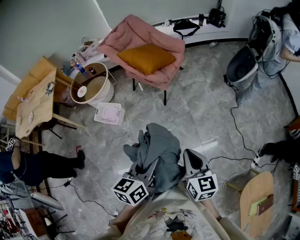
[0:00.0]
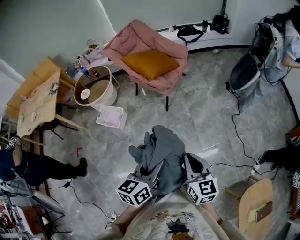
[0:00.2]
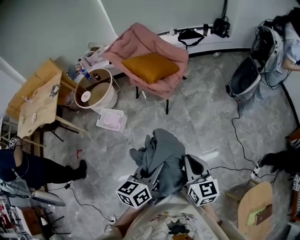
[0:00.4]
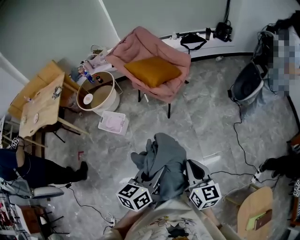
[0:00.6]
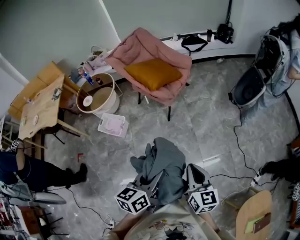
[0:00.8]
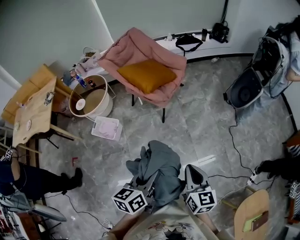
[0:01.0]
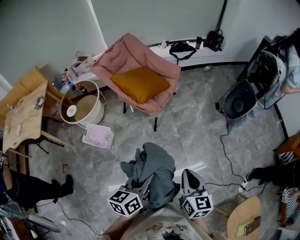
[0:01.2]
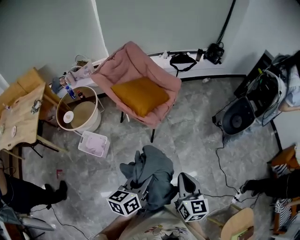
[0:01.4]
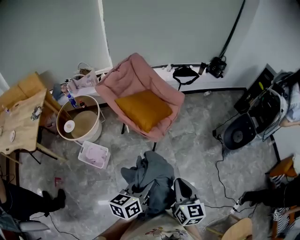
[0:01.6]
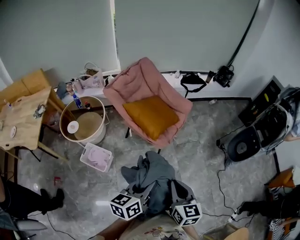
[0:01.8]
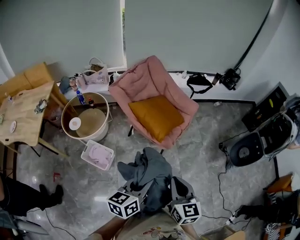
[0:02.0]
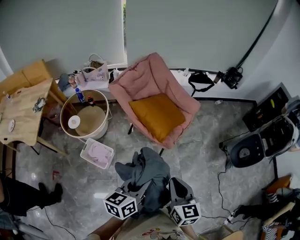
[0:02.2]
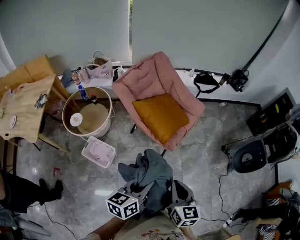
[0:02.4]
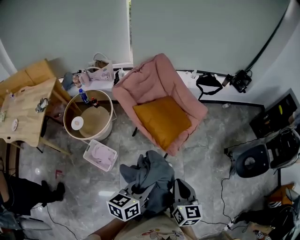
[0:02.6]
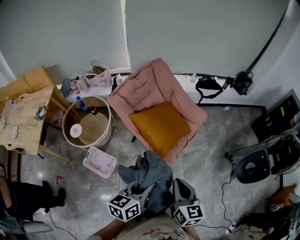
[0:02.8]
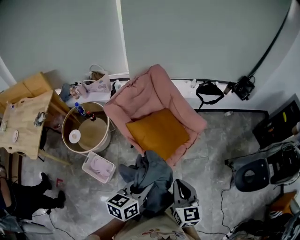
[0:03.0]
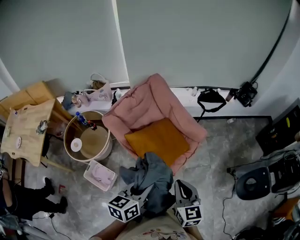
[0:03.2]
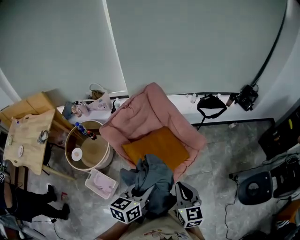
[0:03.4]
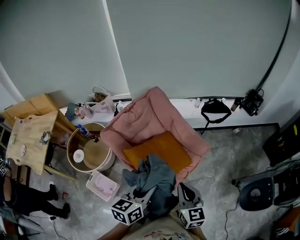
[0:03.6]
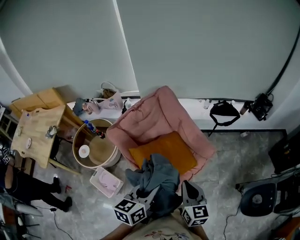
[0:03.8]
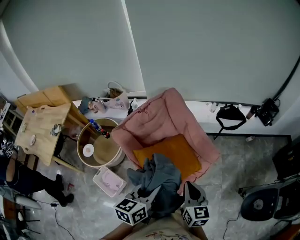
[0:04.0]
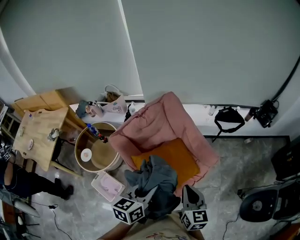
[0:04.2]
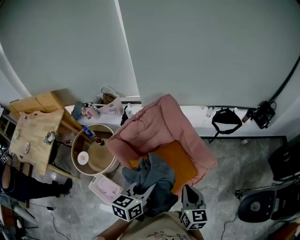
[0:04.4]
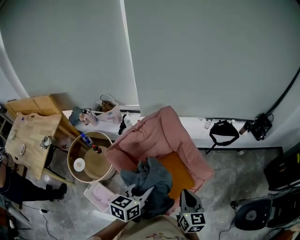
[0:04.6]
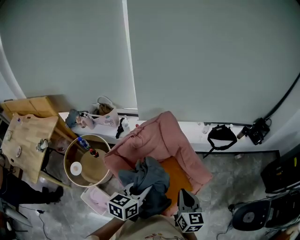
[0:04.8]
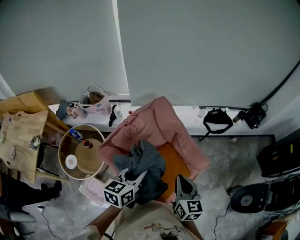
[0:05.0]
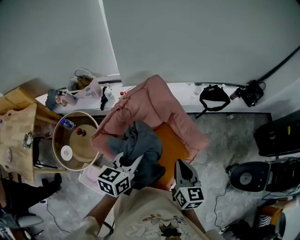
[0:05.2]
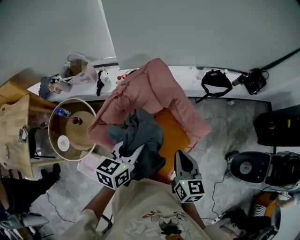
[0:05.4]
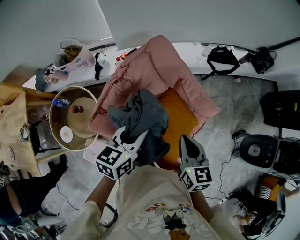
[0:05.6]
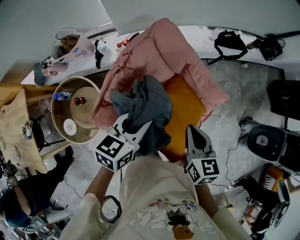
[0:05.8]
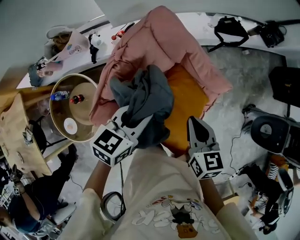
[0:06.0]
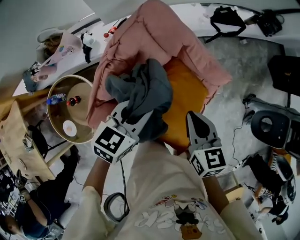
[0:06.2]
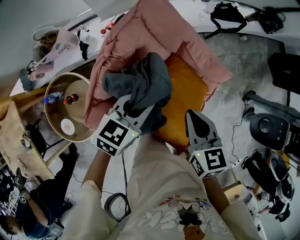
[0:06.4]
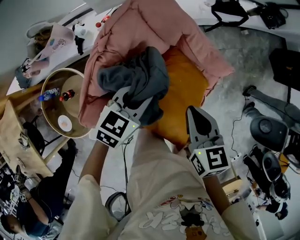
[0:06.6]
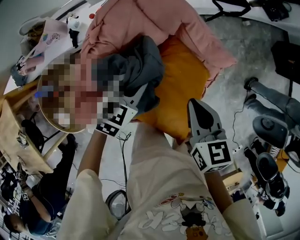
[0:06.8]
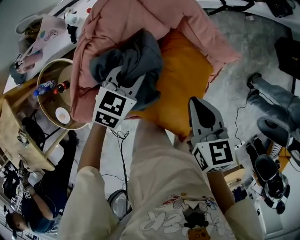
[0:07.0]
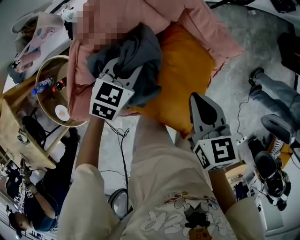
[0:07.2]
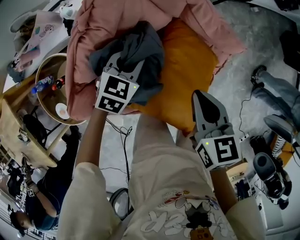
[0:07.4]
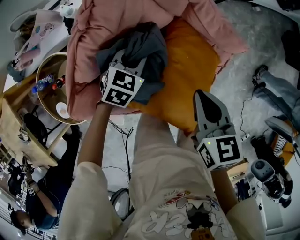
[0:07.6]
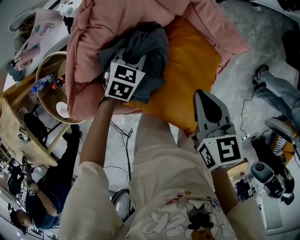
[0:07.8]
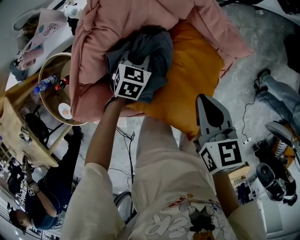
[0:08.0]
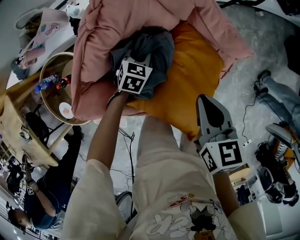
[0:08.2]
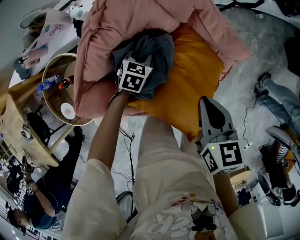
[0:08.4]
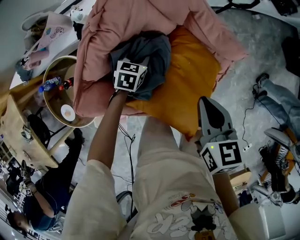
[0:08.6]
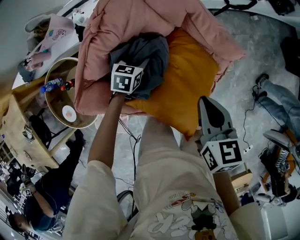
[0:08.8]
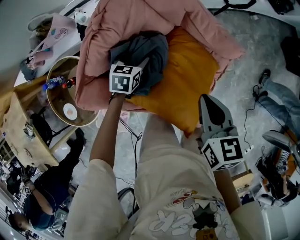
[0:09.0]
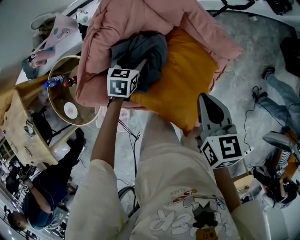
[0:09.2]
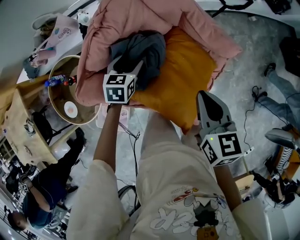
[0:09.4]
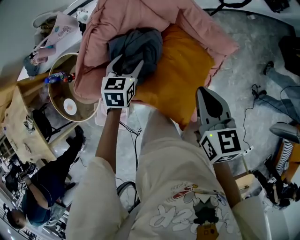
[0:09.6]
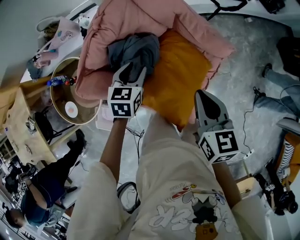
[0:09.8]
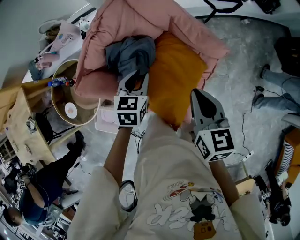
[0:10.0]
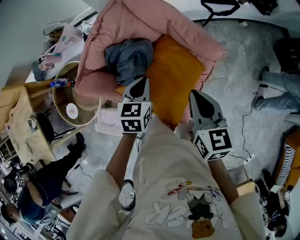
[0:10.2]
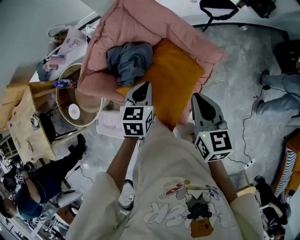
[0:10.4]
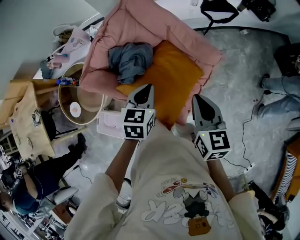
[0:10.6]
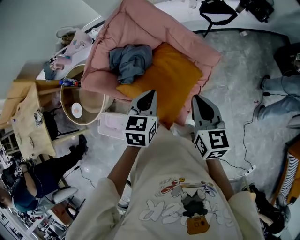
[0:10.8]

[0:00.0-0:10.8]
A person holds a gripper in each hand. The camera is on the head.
0:00.0 to 0:01.6: The grippers both shift forward by about 25 cm.
0:01.6 to 0:03.0: The two grippers go roughly 30 cm forward.
0:03.0 to 0:04.6: The two grippers go roughly 30 cm forward.
0:04.6 to 0:06.2: The left gripper shifts approximately 25 cm forward, downward and to the left, and rotates about 40 degrees. The right gripper heads to the left, forward and downward, covering about 25 cm.
0:06.2 to 0:07.8: The left gripper travels downward by about 25 cm, and changes its angle by roughly 20 degrees. Meanwhile the right gripper shifts roughly 10 cm downward.
0:07.8 to 0:09.2: The left gripper opens up; the right gripper moves upward, some 5 cm.
0:09.2 to 0:10.8: The right gripper travels to the right, backward and upward by roughly 20 cm. Meanwhile the left gripper shifts roughly 35 cm upward, backward and to the right, and closes up.

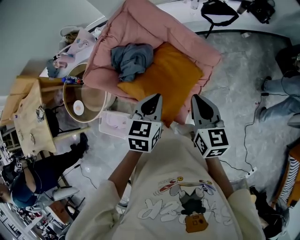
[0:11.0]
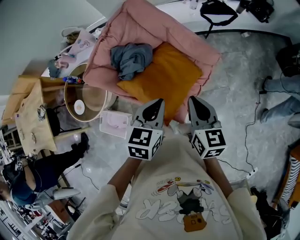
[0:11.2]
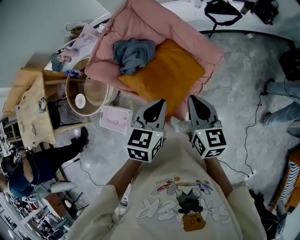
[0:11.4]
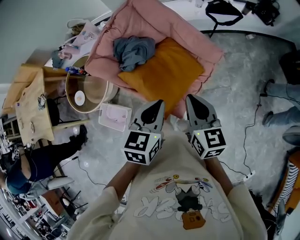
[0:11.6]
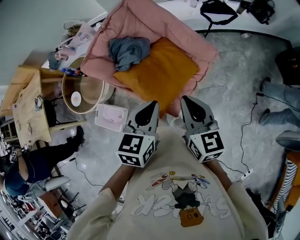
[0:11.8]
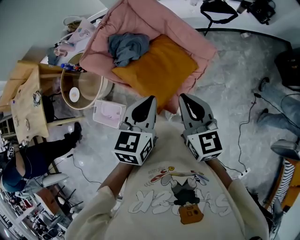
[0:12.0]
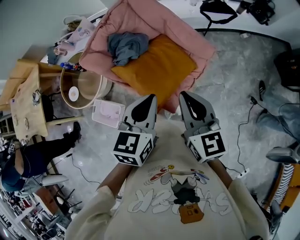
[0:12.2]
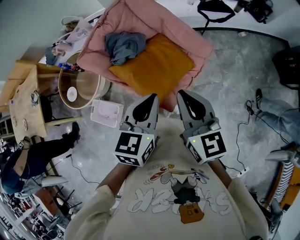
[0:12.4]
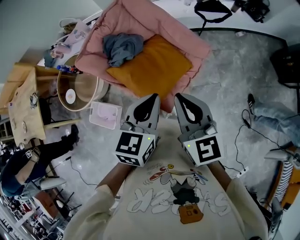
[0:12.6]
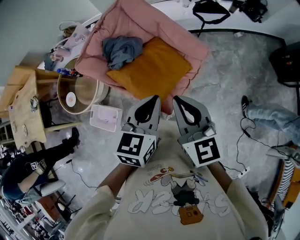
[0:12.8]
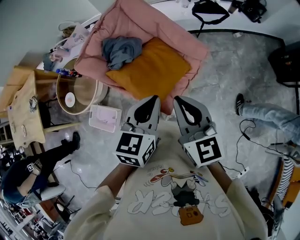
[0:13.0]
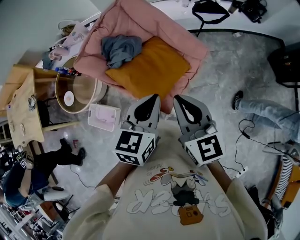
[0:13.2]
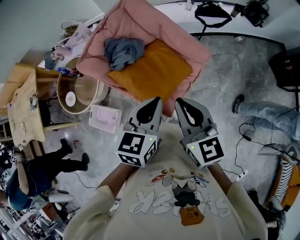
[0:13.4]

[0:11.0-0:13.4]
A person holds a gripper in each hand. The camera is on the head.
0:11.0 to 0:12.2: Both grippers move backward and upward, roughly 10 cm.
0:12.2 to 0:13.4: The grippers stay close to where they were, moving slightly.

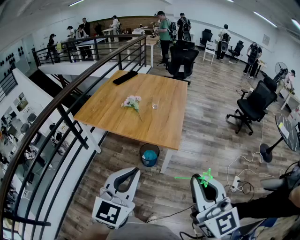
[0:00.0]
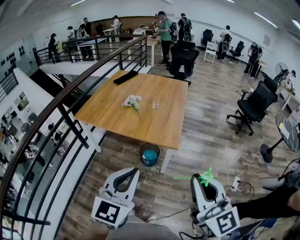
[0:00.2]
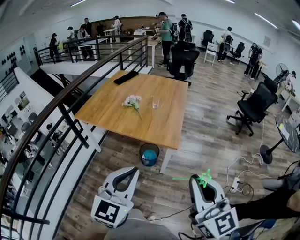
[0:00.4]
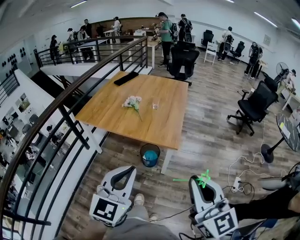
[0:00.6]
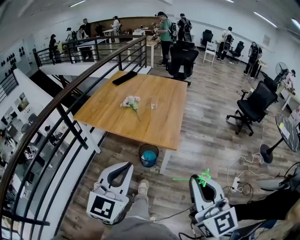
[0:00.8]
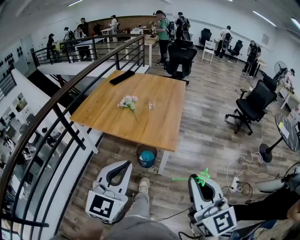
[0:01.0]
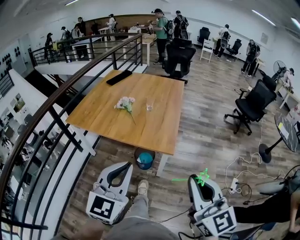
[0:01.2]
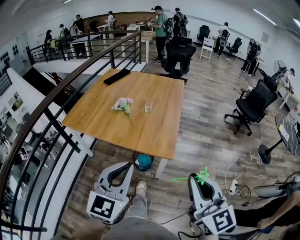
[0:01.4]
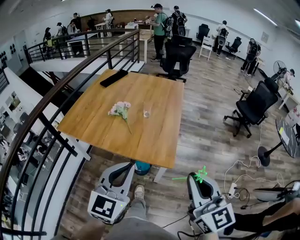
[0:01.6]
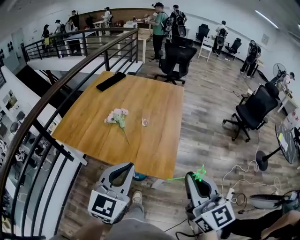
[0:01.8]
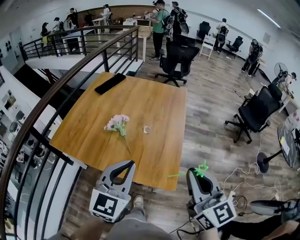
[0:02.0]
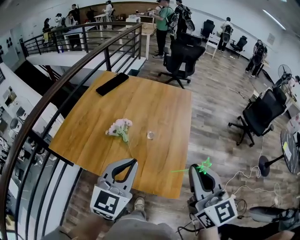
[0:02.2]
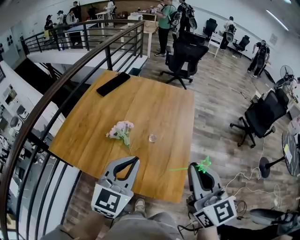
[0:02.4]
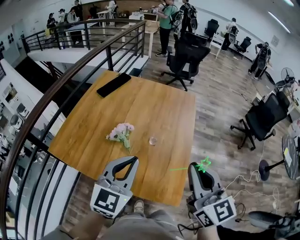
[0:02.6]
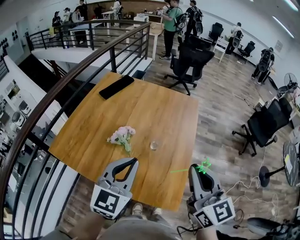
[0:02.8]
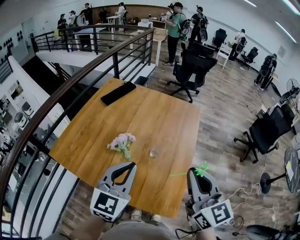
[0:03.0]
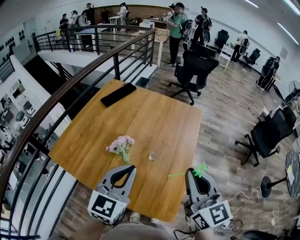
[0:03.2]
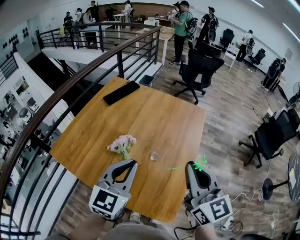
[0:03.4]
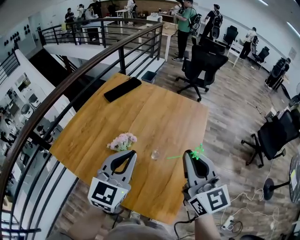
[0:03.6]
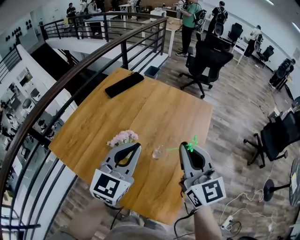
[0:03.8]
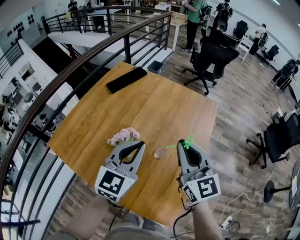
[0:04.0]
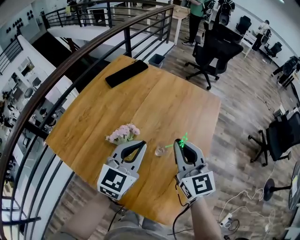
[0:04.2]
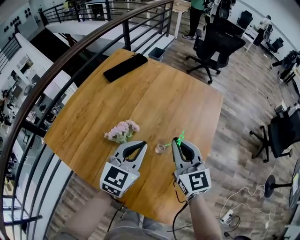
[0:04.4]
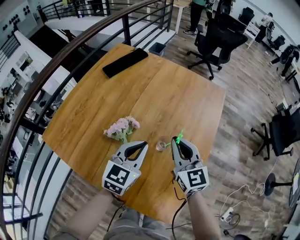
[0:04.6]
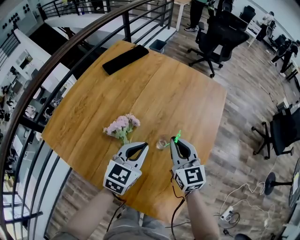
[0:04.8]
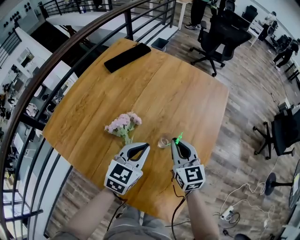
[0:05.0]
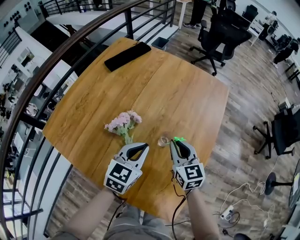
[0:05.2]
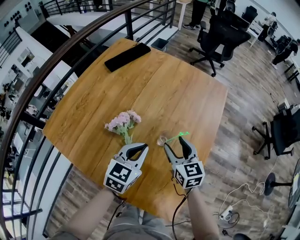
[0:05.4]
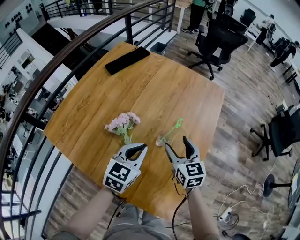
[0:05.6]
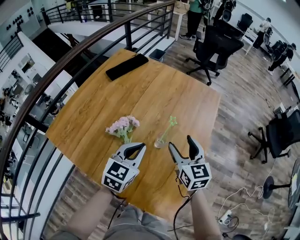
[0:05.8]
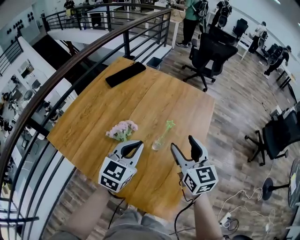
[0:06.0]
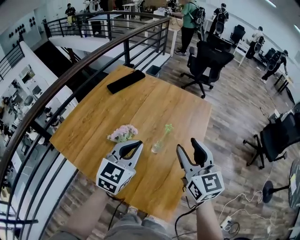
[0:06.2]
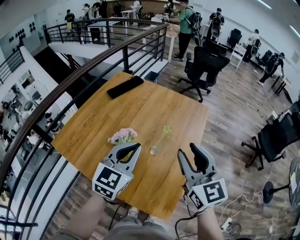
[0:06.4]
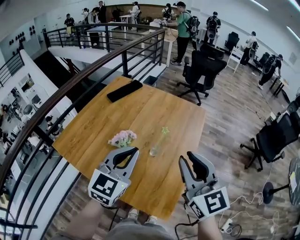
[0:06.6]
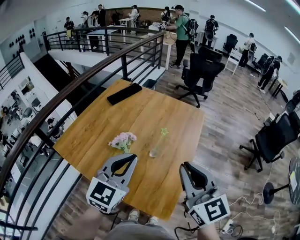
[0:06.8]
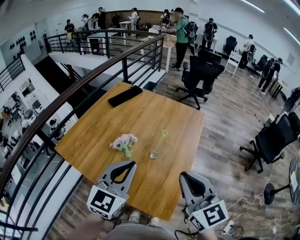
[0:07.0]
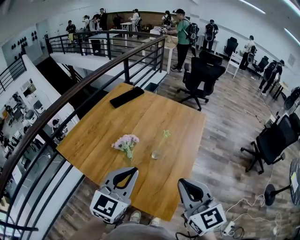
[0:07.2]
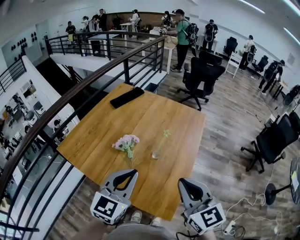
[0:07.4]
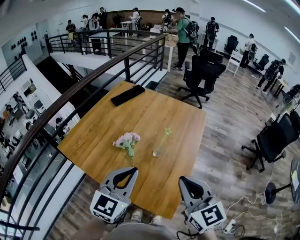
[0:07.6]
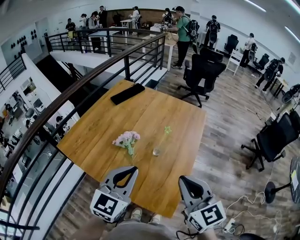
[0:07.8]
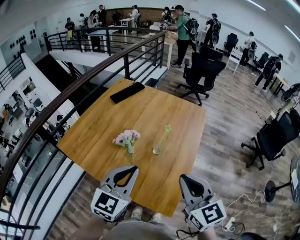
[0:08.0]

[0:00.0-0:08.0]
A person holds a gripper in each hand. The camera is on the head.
0:00.0 to 0:01.6: The grippers both shift forward by approximately 20 cm.
0:01.6 to 0:03.2: The two grippers go roughly 35 cm forward.
0:03.2 to 0:04.8: Both grippers travel together downward and forward, about 25 cm.
0:04.8 to 0:06.4: The left gripper travels upward by roughly 15 cm. Meanwhile the right gripper shifts about 25 cm upward and backward, and opens.
0:06.4 to 0:08.0: Both grippers travel together backward, some 10 cm. The right gripper closes.

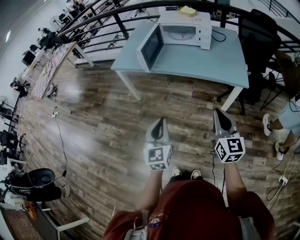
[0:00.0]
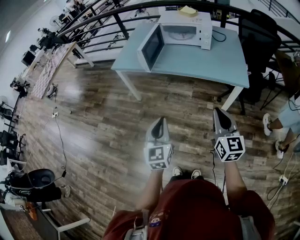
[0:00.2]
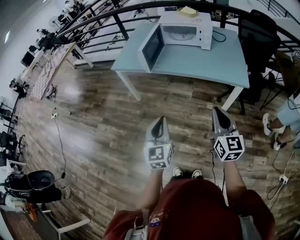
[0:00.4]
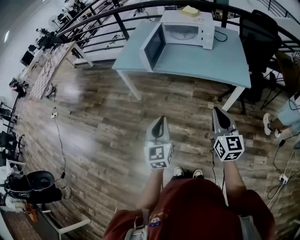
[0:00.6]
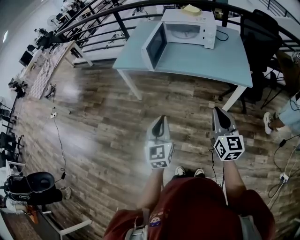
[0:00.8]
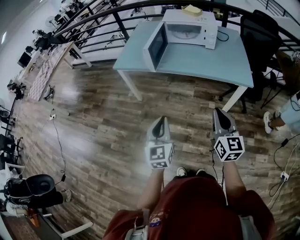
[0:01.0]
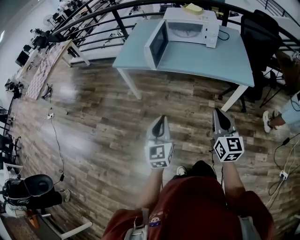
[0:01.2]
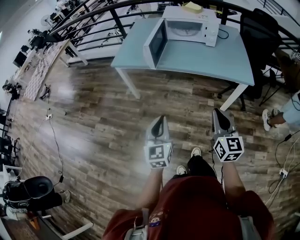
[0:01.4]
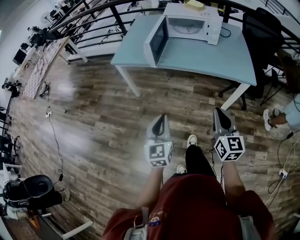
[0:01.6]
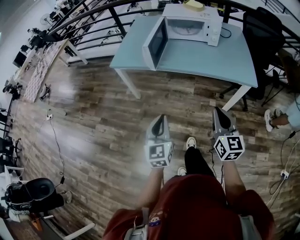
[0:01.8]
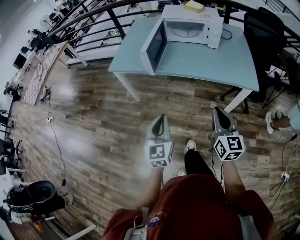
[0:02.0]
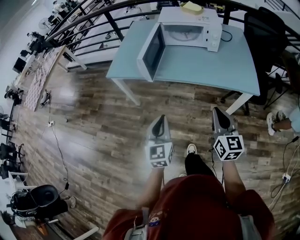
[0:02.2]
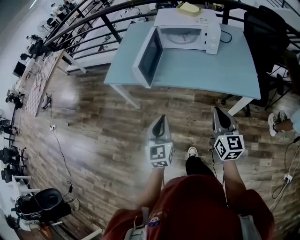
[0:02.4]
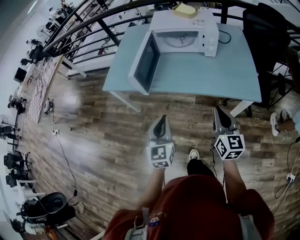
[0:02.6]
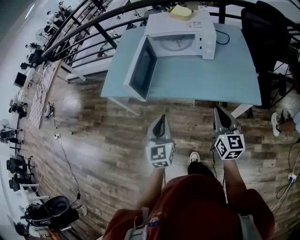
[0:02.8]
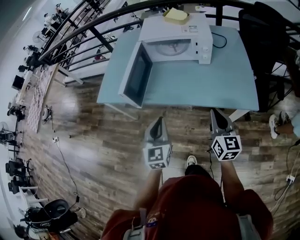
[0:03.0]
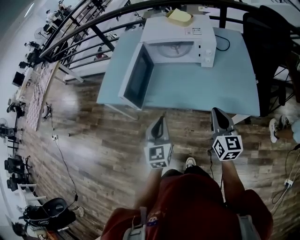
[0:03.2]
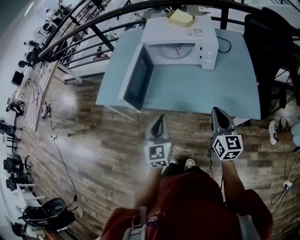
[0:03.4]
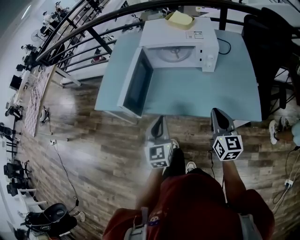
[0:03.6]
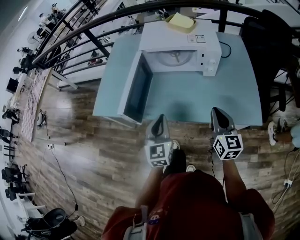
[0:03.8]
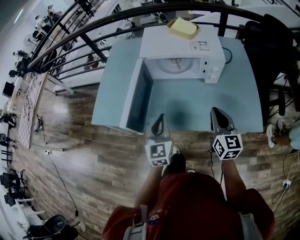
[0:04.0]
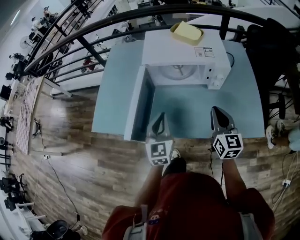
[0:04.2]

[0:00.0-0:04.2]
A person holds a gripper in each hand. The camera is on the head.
0:00.0 to 0:01.4: The grippers both shift to the left by roughly 10 cm.
0:01.4 to 0:02.8: The right gripper moves forward and to the right, approximately 30 cm; the left gripper is displaced forward by some 30 cm.
0:02.8 to 0:04.2: Both grippers move forward, approximately 30 cm.
